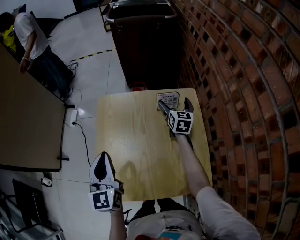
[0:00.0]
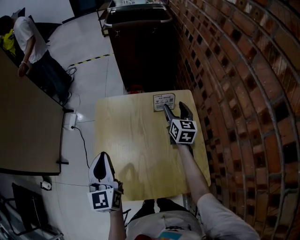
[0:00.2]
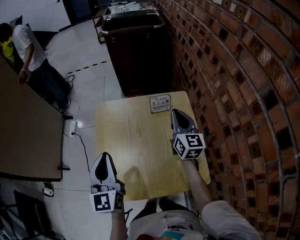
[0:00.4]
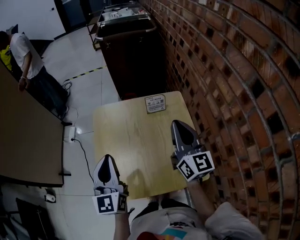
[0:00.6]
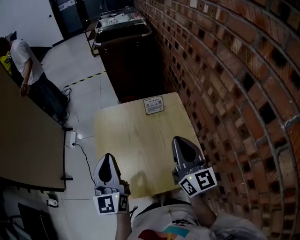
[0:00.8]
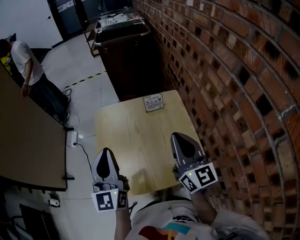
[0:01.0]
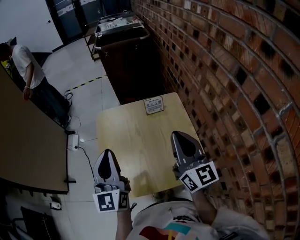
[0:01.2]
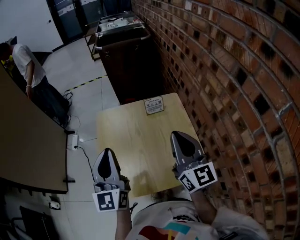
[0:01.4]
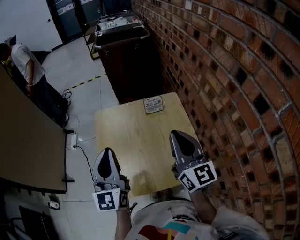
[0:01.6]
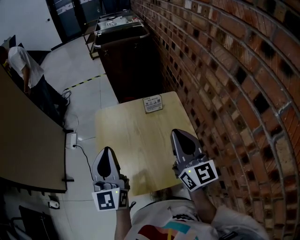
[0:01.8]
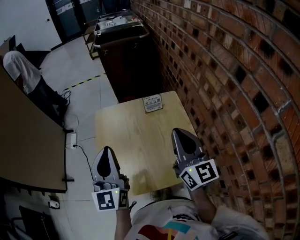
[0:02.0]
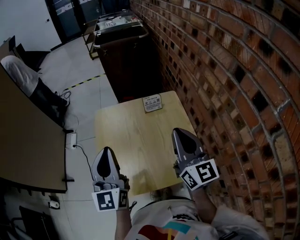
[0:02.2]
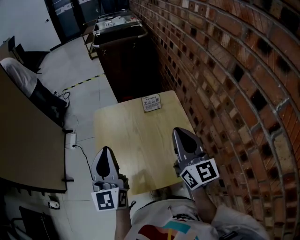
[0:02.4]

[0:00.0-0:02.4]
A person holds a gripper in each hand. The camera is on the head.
0:00.0 to 0:01.2: The left gripper shifts some 15 cm upward and backward, while the right gripper is displaced backward and upward by approximately 40 cm, changes its angle by about 30 degrees, and closes its fingers.
0:01.2 to 0:02.4: The two grippers keep their place.

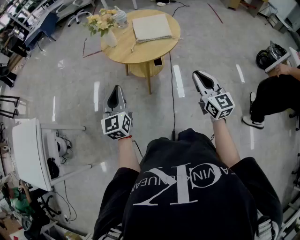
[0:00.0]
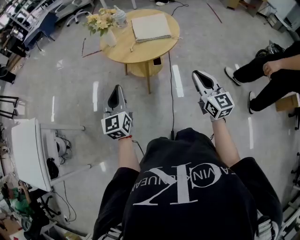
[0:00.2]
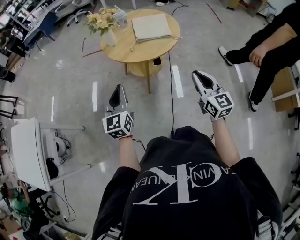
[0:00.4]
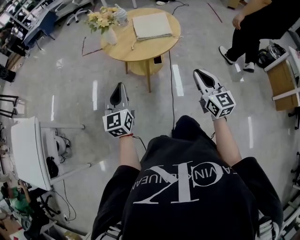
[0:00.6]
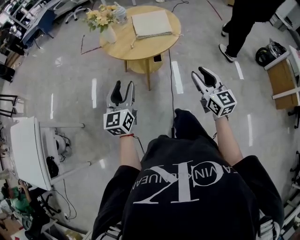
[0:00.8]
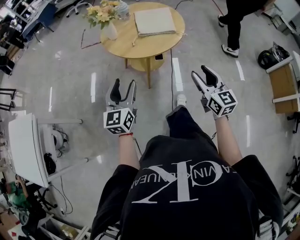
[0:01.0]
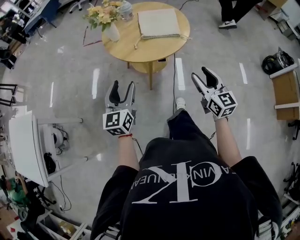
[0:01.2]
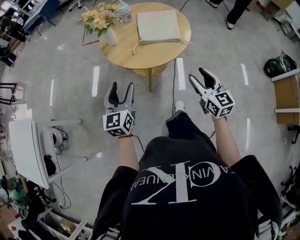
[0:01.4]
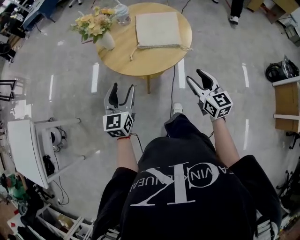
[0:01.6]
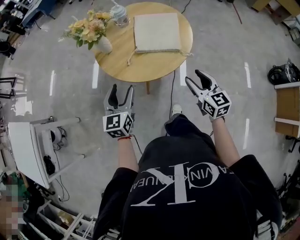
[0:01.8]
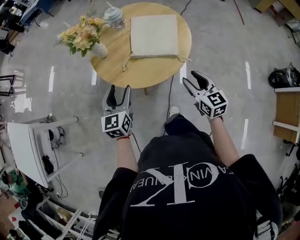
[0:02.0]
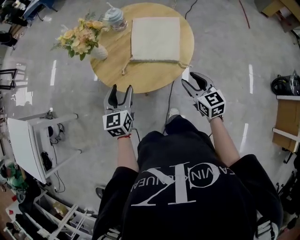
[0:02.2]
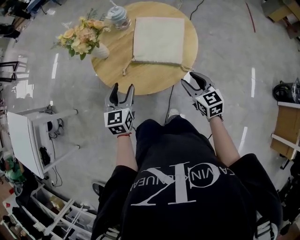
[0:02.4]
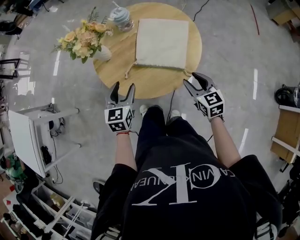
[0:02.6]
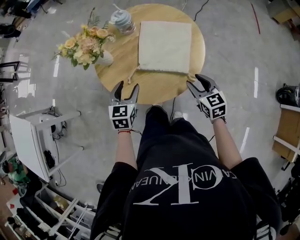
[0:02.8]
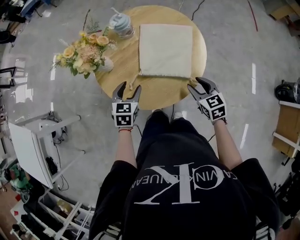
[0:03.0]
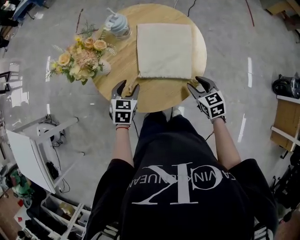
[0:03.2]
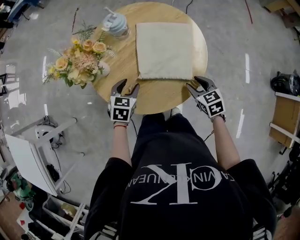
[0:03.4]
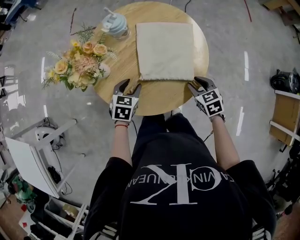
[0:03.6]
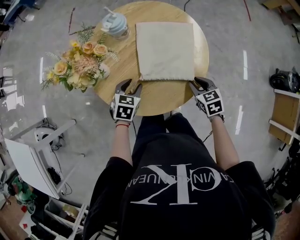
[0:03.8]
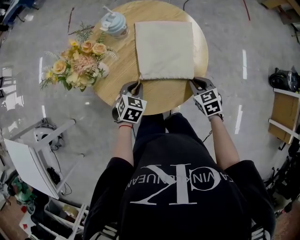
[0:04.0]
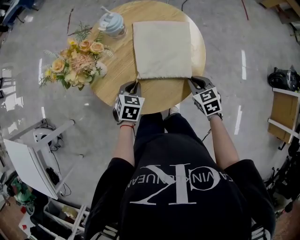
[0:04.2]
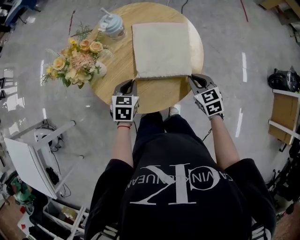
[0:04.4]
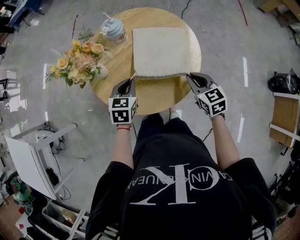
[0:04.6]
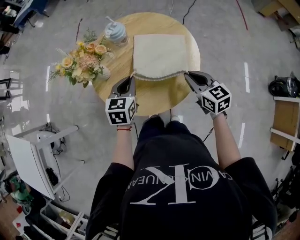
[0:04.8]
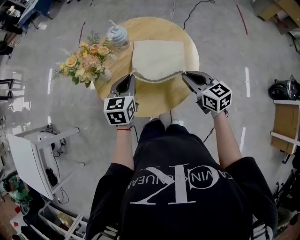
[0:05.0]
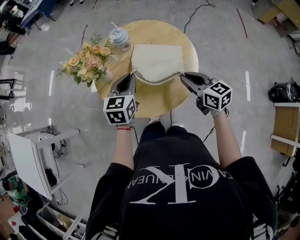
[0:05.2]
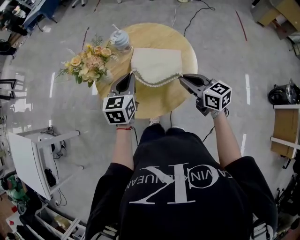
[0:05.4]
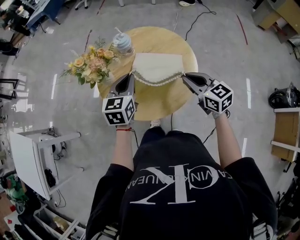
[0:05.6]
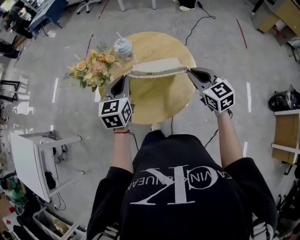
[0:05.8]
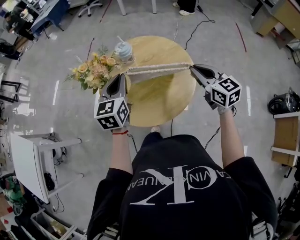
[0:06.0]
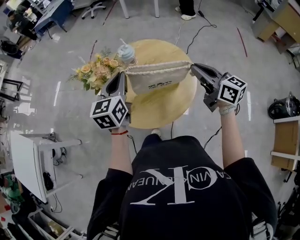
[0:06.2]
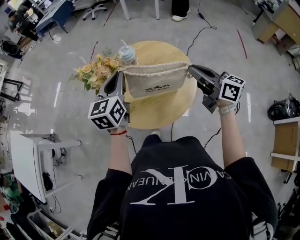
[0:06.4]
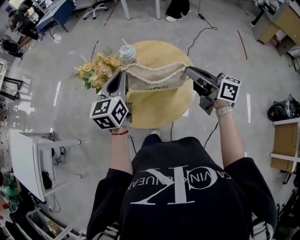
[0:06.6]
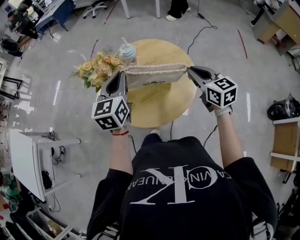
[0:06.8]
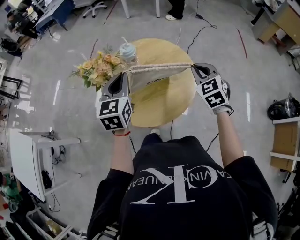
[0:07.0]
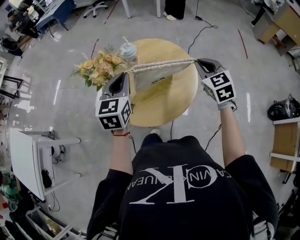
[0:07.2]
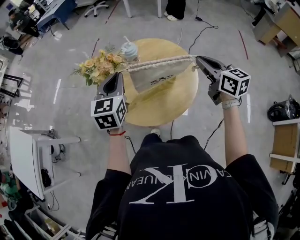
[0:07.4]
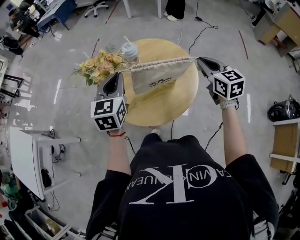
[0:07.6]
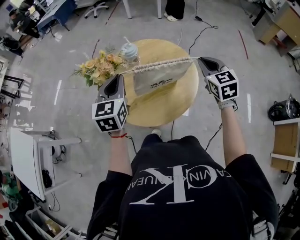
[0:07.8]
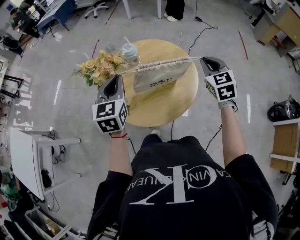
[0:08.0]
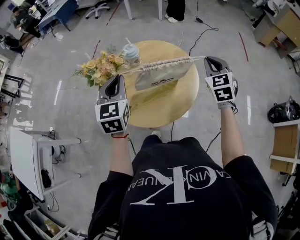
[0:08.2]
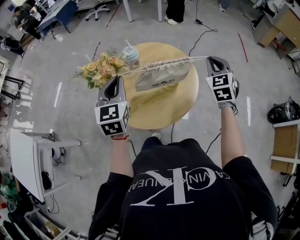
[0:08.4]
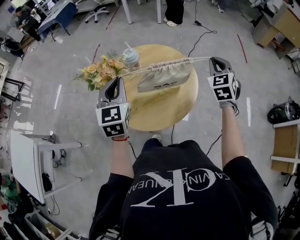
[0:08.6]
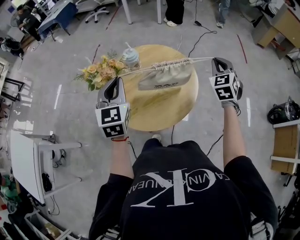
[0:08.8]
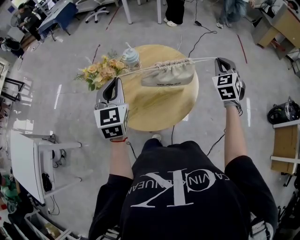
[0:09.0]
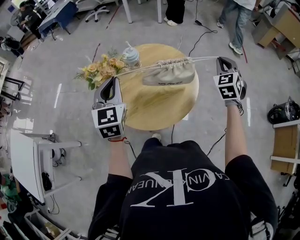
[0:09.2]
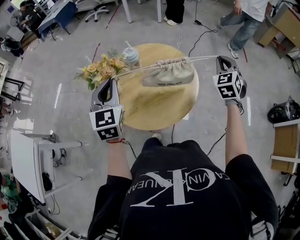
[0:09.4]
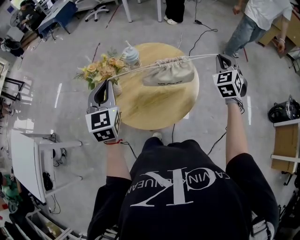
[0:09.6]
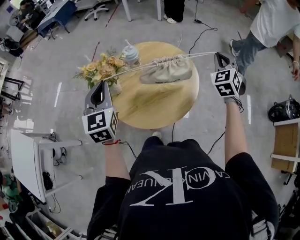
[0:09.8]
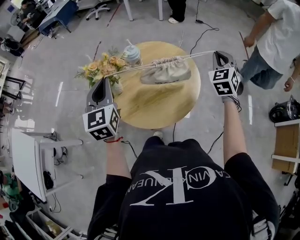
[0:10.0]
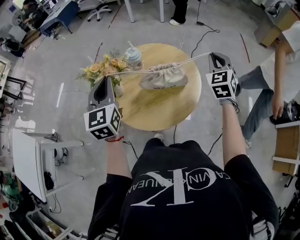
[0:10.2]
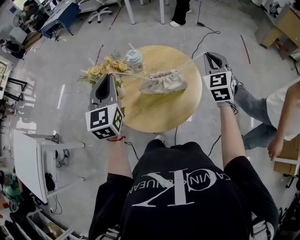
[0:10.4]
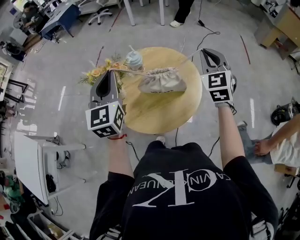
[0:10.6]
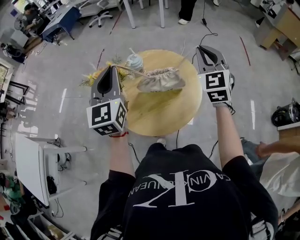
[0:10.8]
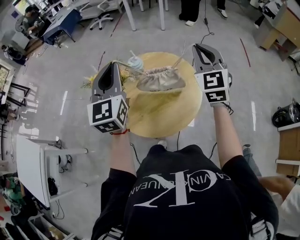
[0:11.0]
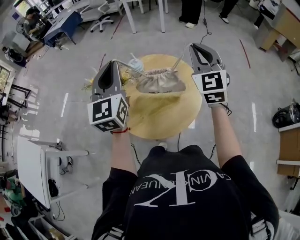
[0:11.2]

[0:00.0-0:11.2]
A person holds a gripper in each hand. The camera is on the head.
0:00.0 to 0:01.6: The right gripper moves forward, roughly 15 cm, and opens. Meanwhile the left gripper goes about 15 cm forward and to the right, and opens its fingers.
0:01.6 to 0:03.2: Both grippers move forward and downward, some 25 cm. The right gripper changes its angle by approximately 30 degrees. Meanwhile the left gripper tilts its fingers some 30 degrees downward.
0:03.2 to 0:04.8: Both grippers move upward, approximately 10 cm. The left gripper closes its fingers. Meanwhile the right gripper closes.
0:04.8 to 0:06.4: Both grippers move upward, approximately 20 cm. The right gripper turns by roughly 30 degrees; the left gripper swivels roughly 30 degrees.
0:06.4 to 0:08.0: The right gripper travels to the right by about 5 cm, and changes its angle by roughly 60 degrees.
0:08.0 to 0:09.6: The right gripper goes approximately 5 cm to the right, and changes its angle by about 30 degrees.
0:09.6 to 0:11.2: The left gripper travels upward by roughly 10 cm; the right gripper moves to the left and upward, roughly 20 cm, and rotates about 30 degrees.

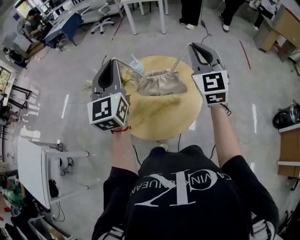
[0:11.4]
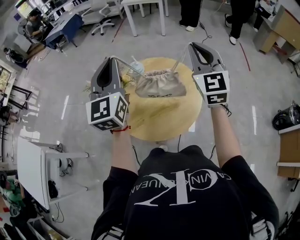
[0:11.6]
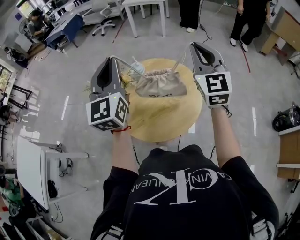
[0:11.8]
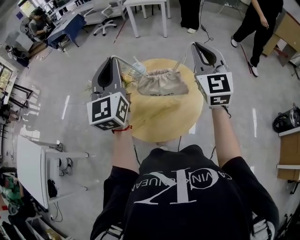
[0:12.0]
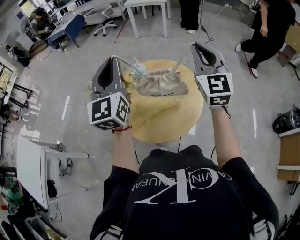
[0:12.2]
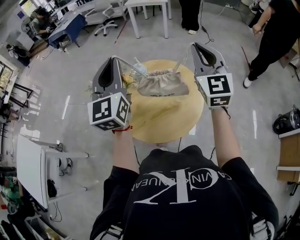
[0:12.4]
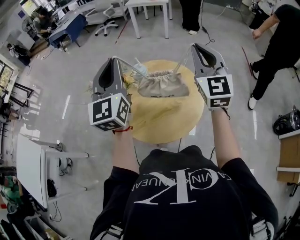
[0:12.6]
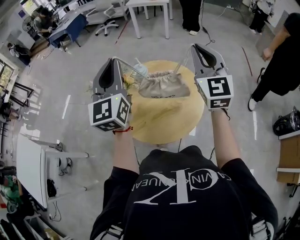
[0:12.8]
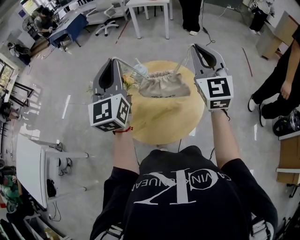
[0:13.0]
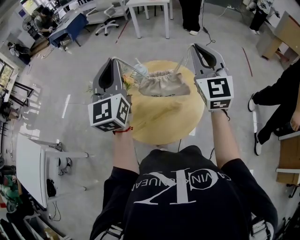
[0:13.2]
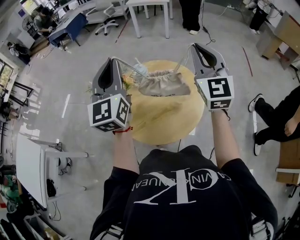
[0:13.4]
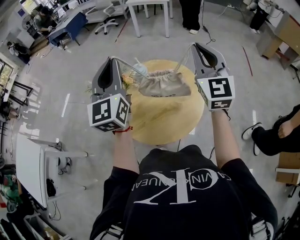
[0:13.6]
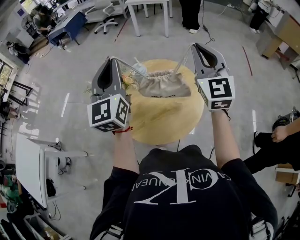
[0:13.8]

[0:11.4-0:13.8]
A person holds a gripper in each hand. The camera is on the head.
0:11.4 to 0:12.6: The grippers make only small movements.
0:12.6 to 0:13.8: Neither gripper changes place.

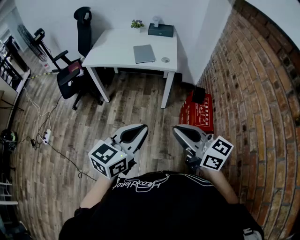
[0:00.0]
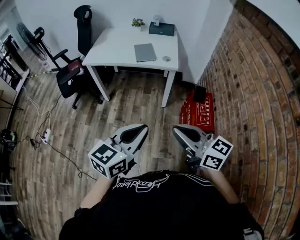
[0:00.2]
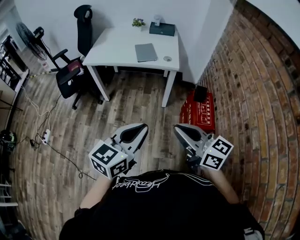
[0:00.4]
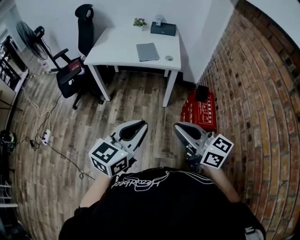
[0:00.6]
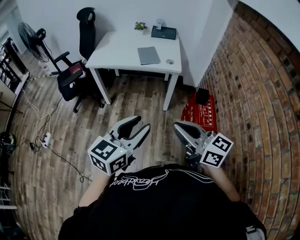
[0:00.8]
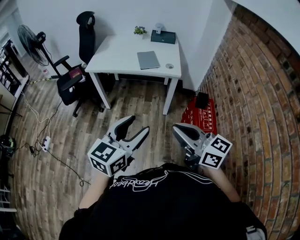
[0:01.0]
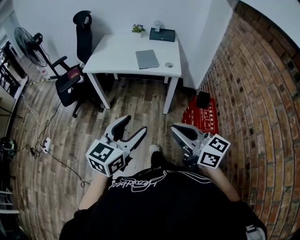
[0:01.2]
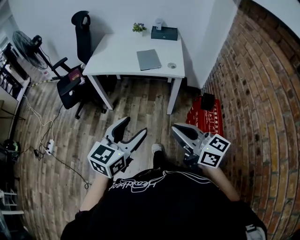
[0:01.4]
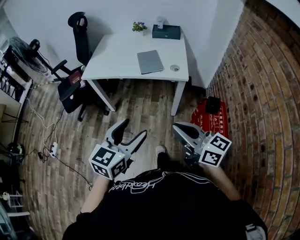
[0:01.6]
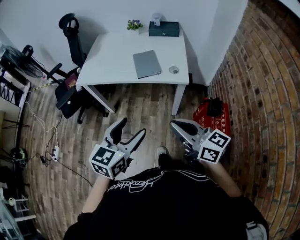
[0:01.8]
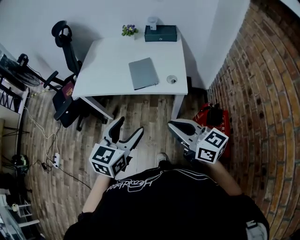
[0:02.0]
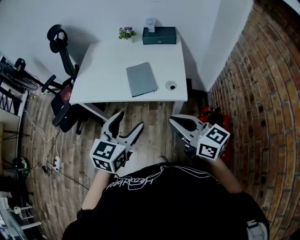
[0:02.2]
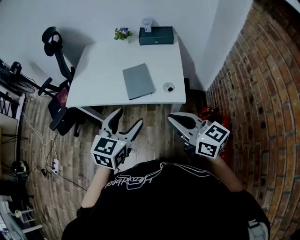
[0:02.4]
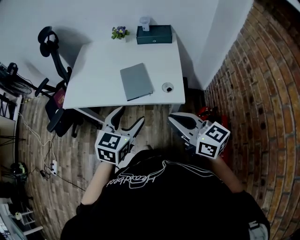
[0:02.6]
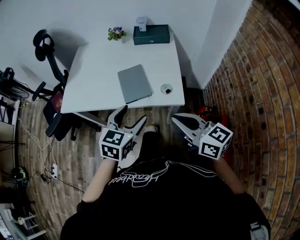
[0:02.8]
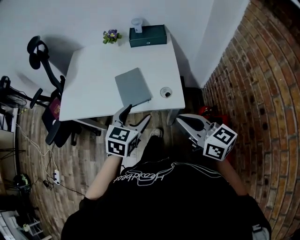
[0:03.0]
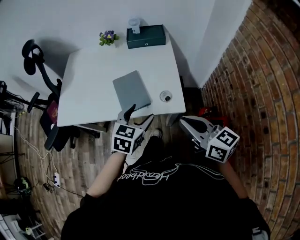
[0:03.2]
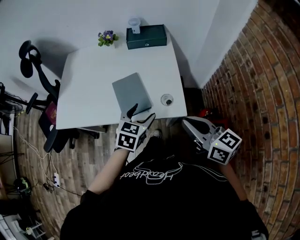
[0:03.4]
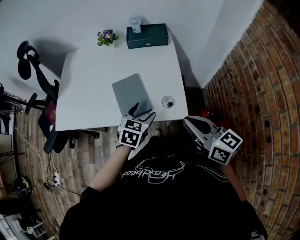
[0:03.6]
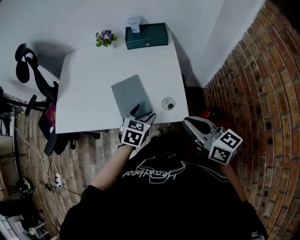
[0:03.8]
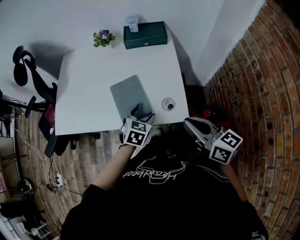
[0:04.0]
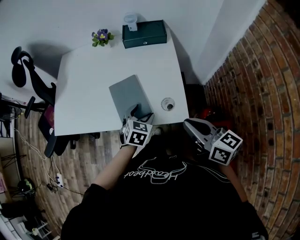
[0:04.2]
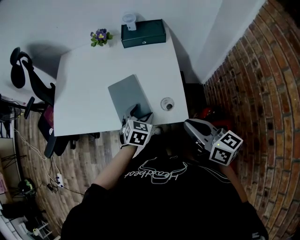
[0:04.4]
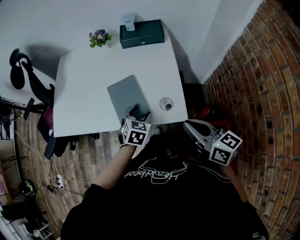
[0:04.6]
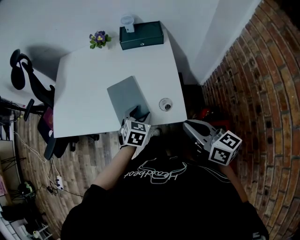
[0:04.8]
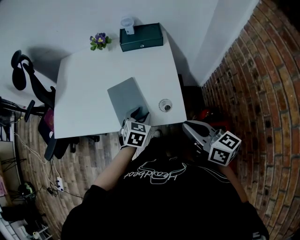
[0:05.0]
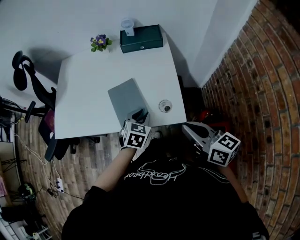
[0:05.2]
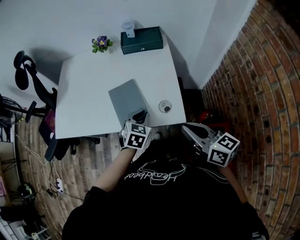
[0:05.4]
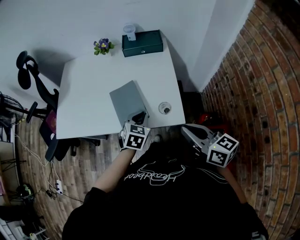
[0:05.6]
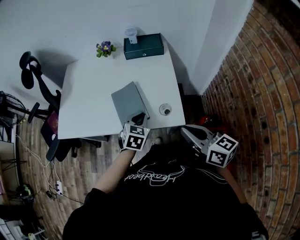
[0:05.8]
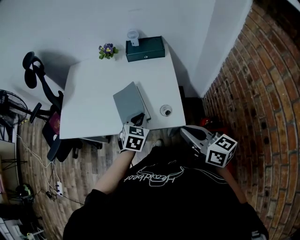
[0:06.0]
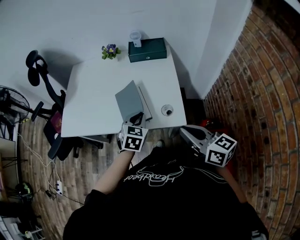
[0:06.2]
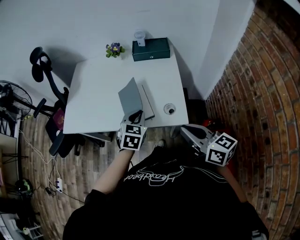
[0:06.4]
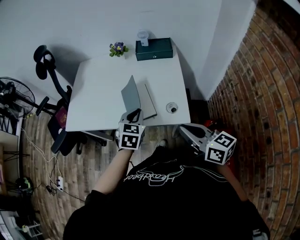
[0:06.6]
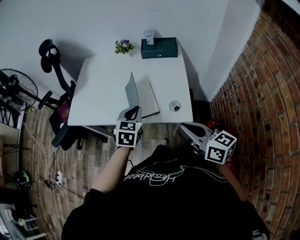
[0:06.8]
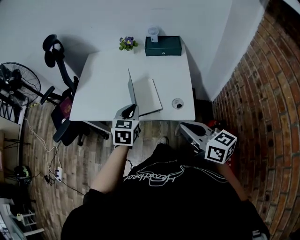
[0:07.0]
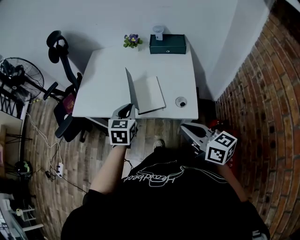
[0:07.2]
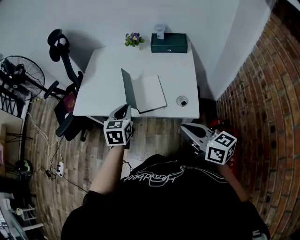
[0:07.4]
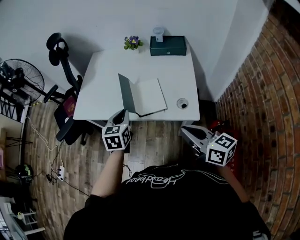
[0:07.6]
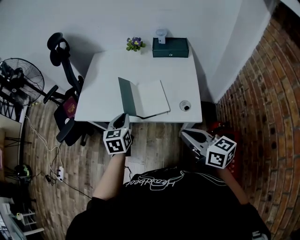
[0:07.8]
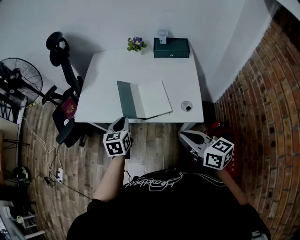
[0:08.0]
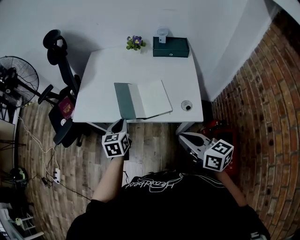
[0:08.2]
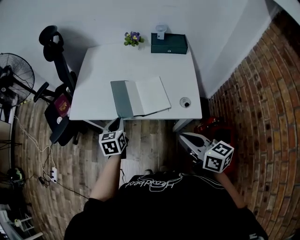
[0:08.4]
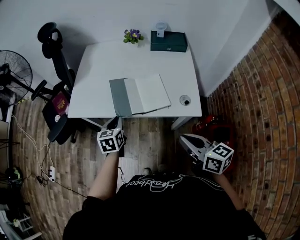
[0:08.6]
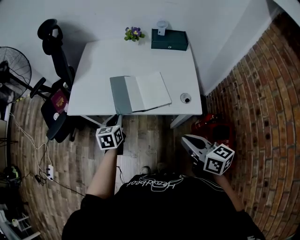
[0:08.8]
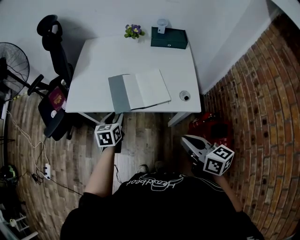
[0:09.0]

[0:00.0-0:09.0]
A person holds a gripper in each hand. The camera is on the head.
0:00.0 to 0:01.6: The right gripper moves forward, approximately 15 cm, while the left gripper heads forward and to the left, covering about 15 cm, and opens up.
0:01.6 to 0:03.0: Both grippers move forward, some 30 cm.
0:03.0 to 0:04.4: The left gripper goes some 20 cm downward and forward; the right gripper goes about 10 cm forward.
0:04.4 to 0:06.0: The left gripper heads upward, covering roughly 5 cm, and closes up.
0:06.0 to 0:07.6: The left gripper goes some 15 cm to the left, and changes its angle by some 30 degrees. The right gripper goes approximately 5 cm to the left.
0:07.6 to 0:09.0: The left gripper goes approximately 10 cm downward and to the left. The right gripper shifts approximately 5 cm to the left.
